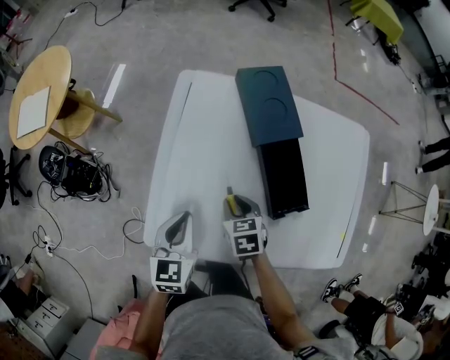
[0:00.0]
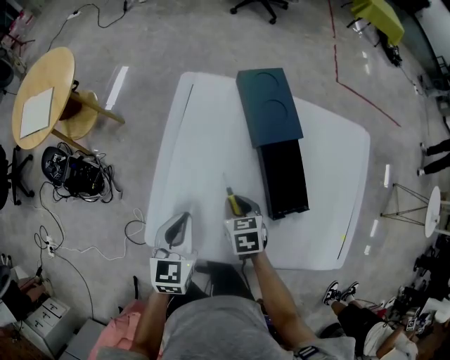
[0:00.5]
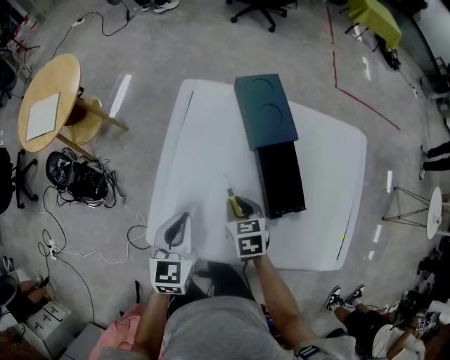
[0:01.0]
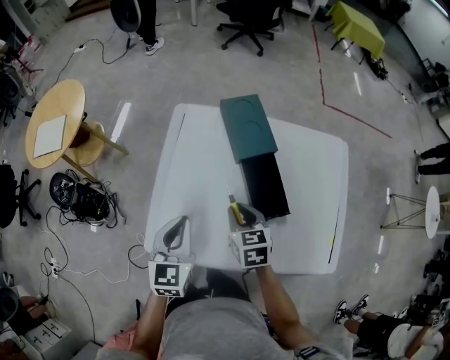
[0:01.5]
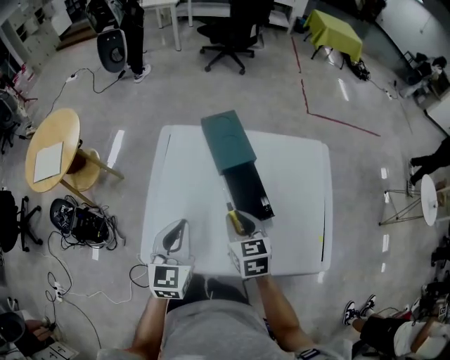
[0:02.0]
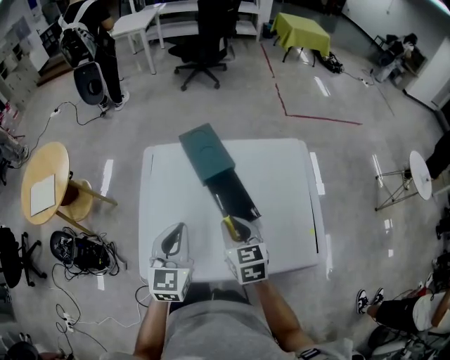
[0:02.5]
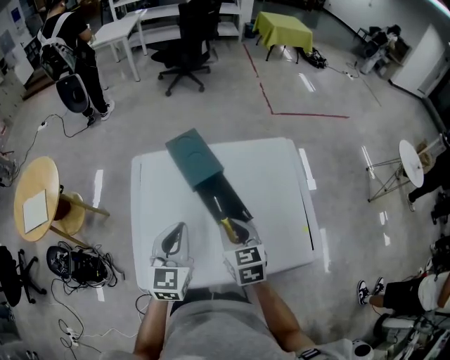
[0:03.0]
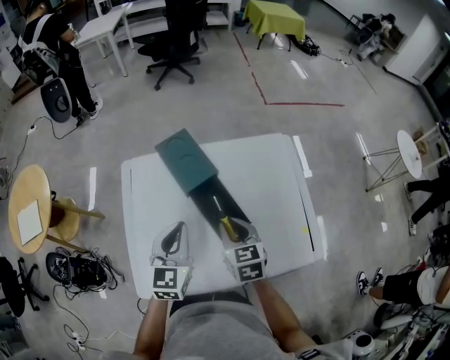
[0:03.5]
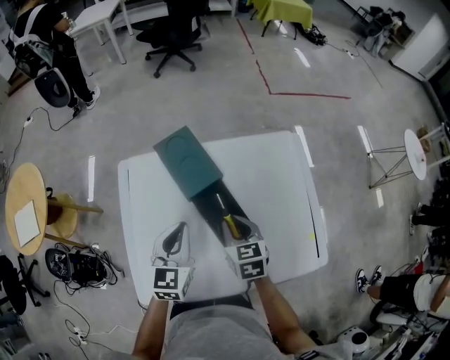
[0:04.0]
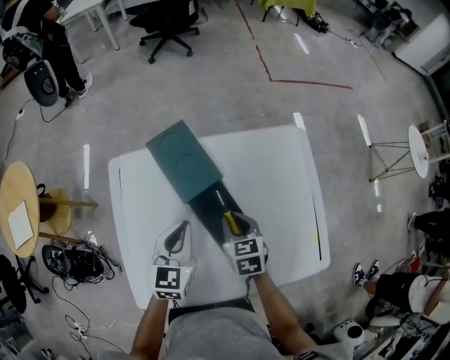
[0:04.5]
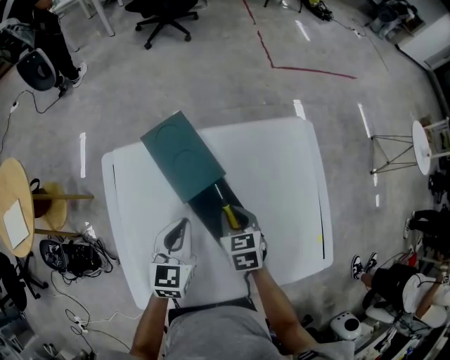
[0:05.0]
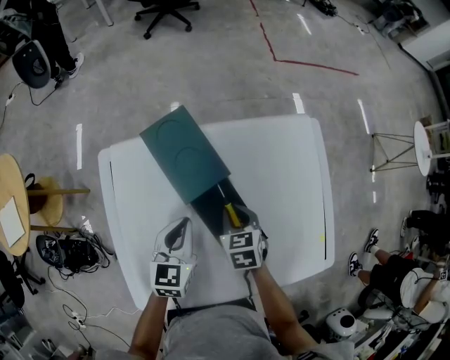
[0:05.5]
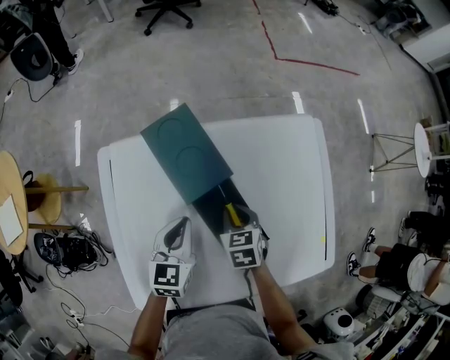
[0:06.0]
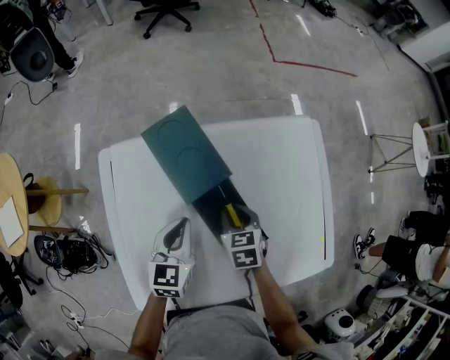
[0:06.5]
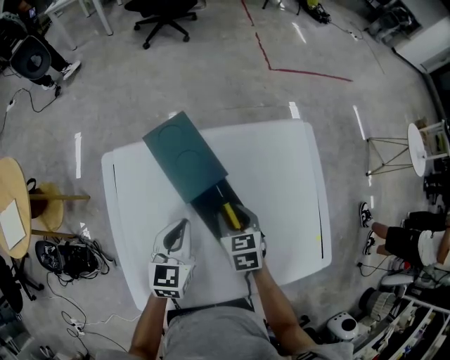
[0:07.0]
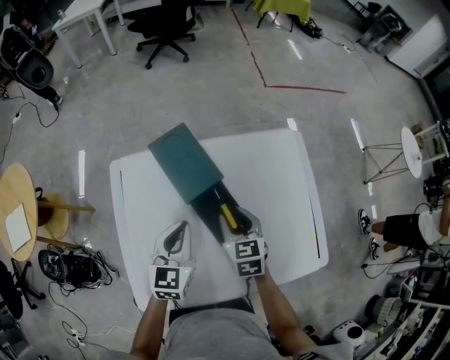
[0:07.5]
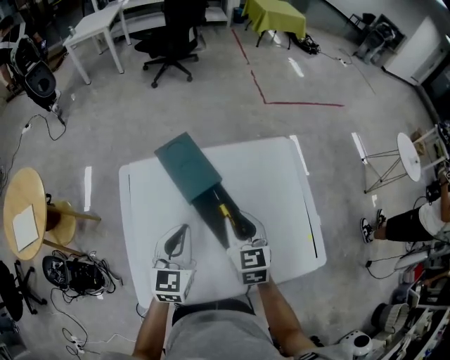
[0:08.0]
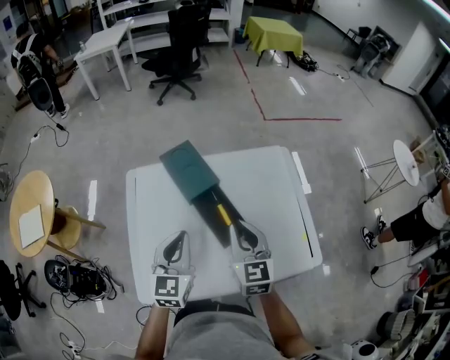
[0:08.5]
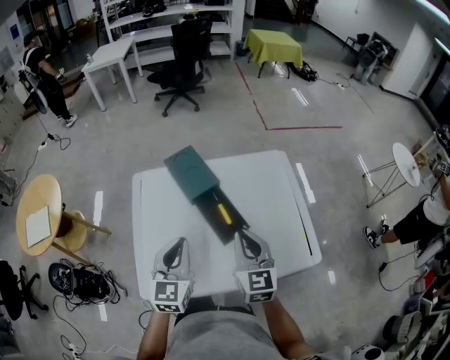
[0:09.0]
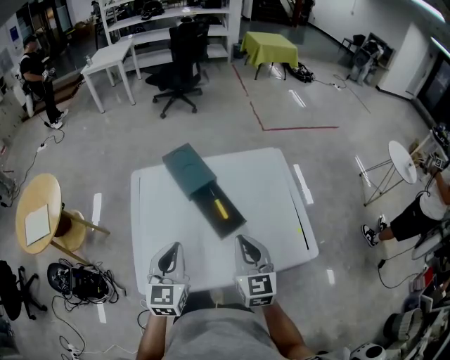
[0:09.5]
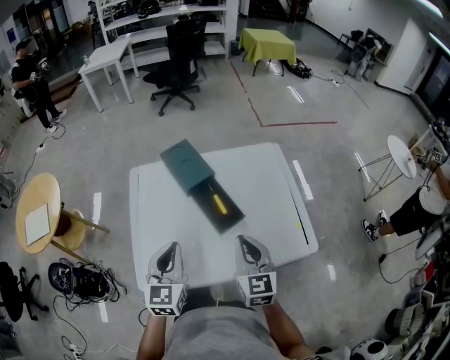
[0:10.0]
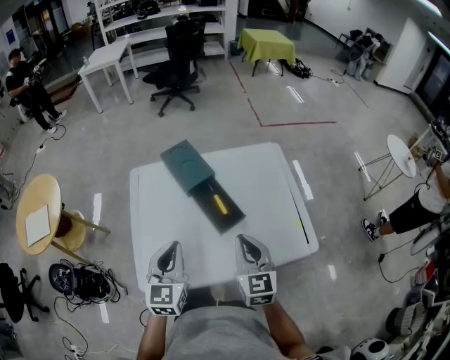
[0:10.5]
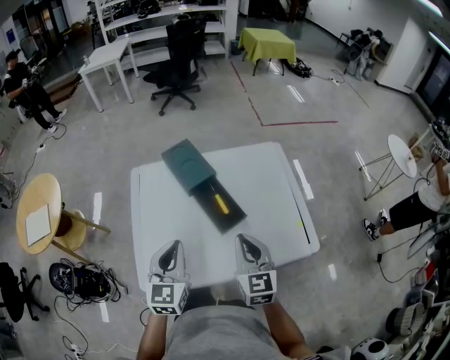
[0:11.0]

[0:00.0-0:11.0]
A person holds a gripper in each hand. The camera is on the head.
0:00.0 to 0:02.0: The two grippers go approximately 15 cm upward and to the right. The right gripper changes its angle by some 20 degrees.
0:02.0 to 0:03.5: The right gripper shifts some 5 cm to the right. The left gripper heads to the right and forward, covering some 10 cm.
0:03.5 to 0:05.5: Both grippers travel together downward and forward, about 20 cm.
0:05.5 to 0:07.5: Both grippers travel together upward, about 10 cm.
0:07.5 to 0:09.0: The grippers both shift backward and upward by roughly 20 cm. The right gripper turns by approximately 30 degrees, and closes its fingers.
0:09.0 to 0:11.0: The right gripper goes approximately 5 cm backward. The left gripper moves some 5 cm.

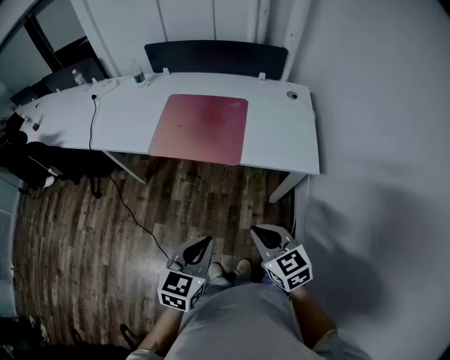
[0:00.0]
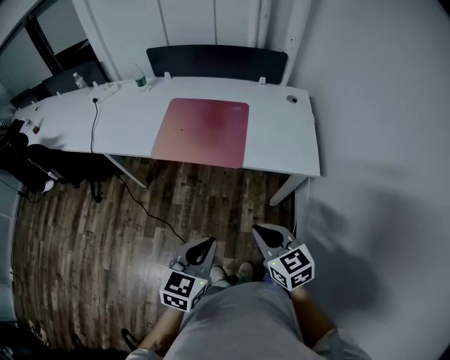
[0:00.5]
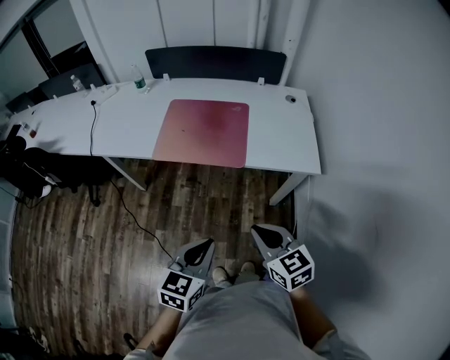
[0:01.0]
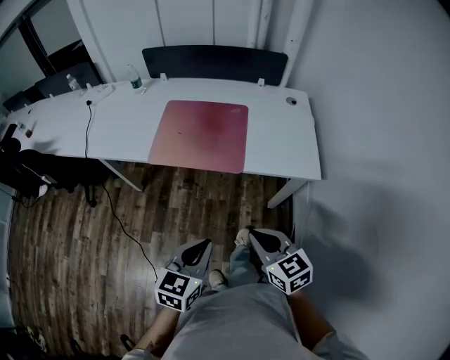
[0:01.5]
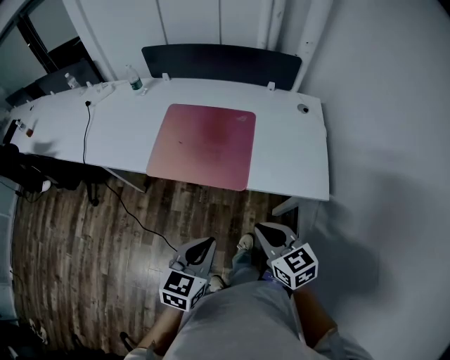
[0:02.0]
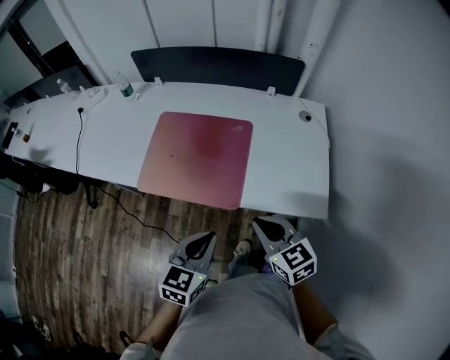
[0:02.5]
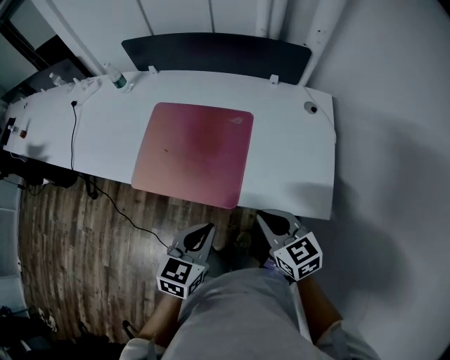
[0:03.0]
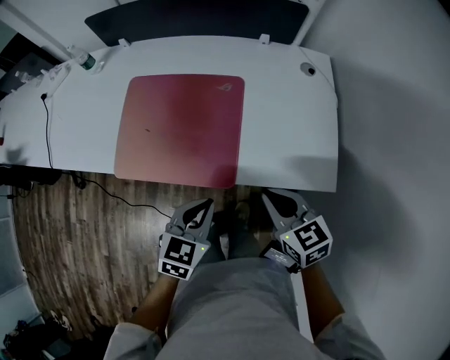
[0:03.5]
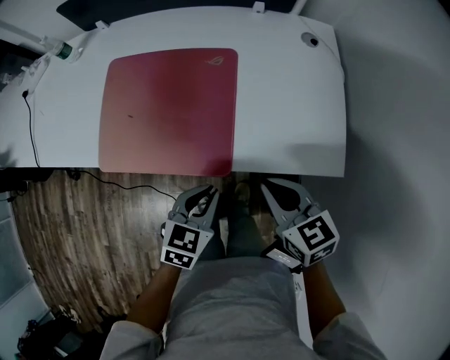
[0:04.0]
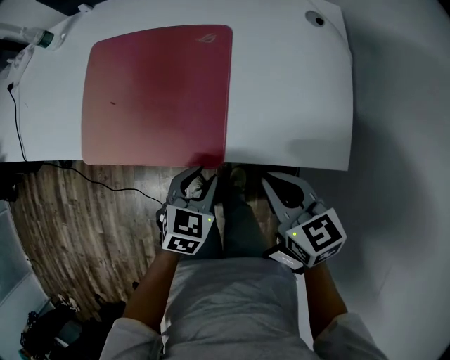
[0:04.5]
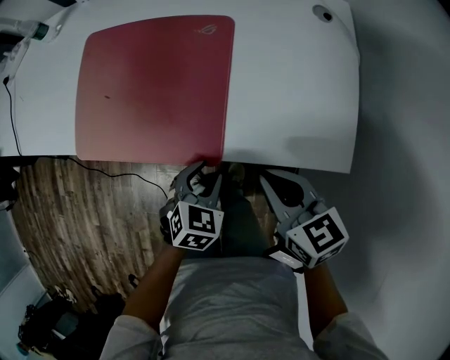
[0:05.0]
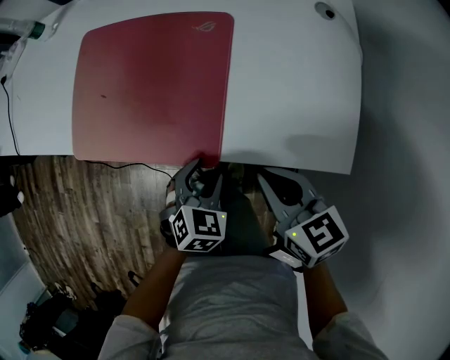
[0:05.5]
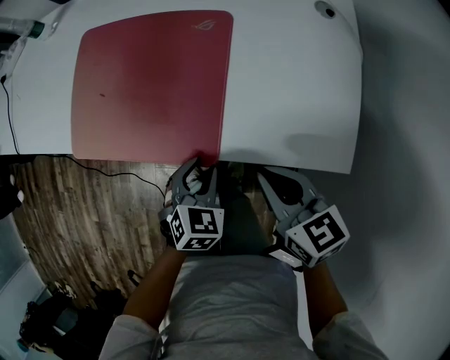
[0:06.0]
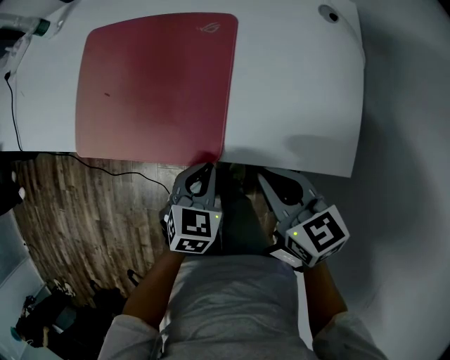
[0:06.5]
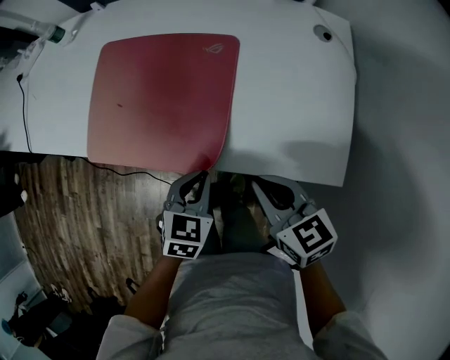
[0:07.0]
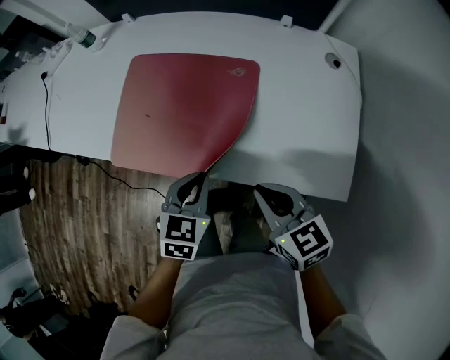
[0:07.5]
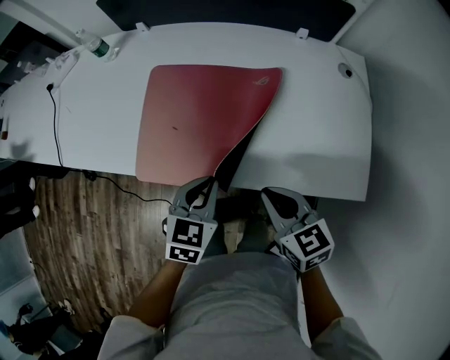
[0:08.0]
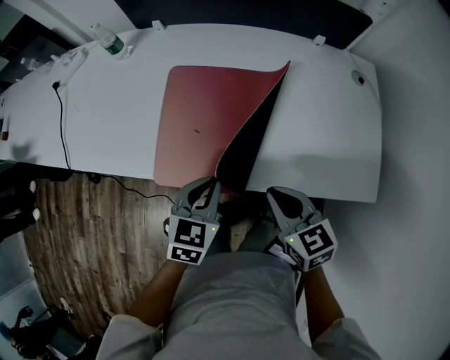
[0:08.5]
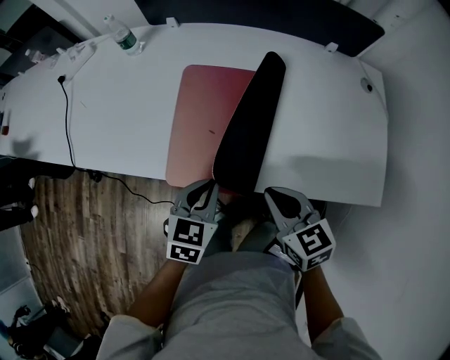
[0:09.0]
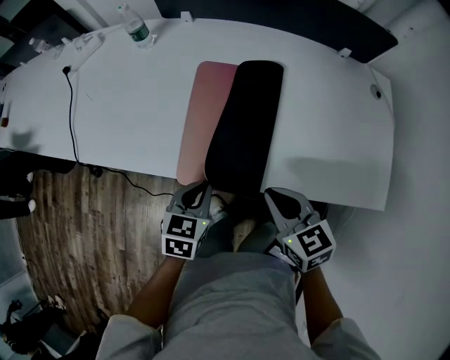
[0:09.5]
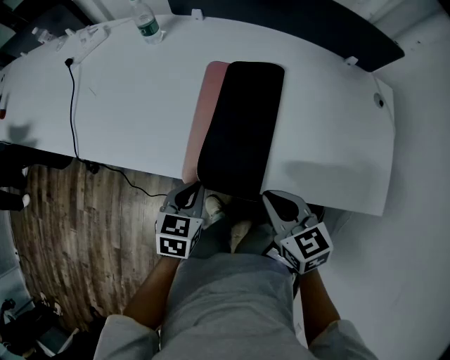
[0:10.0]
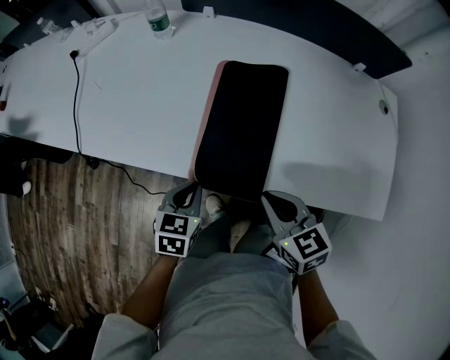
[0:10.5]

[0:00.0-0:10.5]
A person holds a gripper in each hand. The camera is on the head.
0:00.0 to 0:02.0: The two grippers go about 10 cm forward.
0:02.0 to 0:04.0: Both grippers move forward, downward and to the right, some 20 cm.
0:04.0 to 0:06.5: The left gripper travels downward by about 5 cm, and opens, then closes again.
0:06.5 to 0:08.5: The left gripper travels to the left, upward and forward by some 25 cm, while the right gripper travels to the left by roughly 15 cm.
0:08.5 to 0:10.5: The left gripper heads to the left and downward, covering approximately 20 cm; the right gripper moves to the left, some 15 cm.

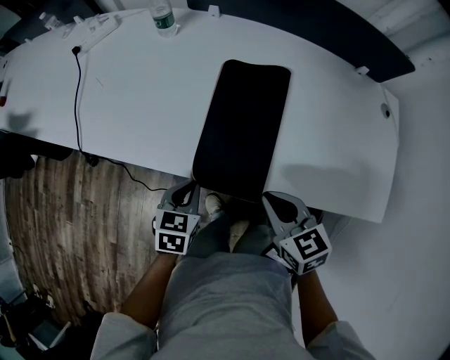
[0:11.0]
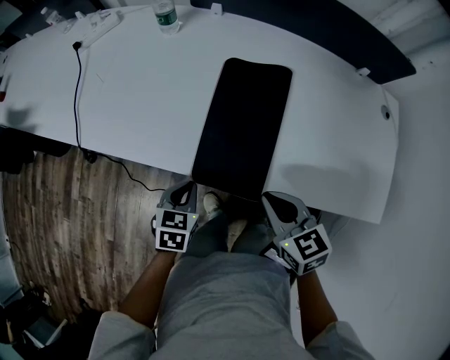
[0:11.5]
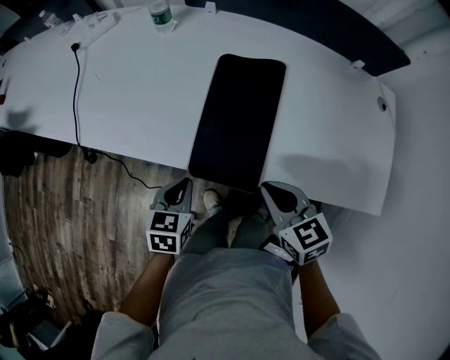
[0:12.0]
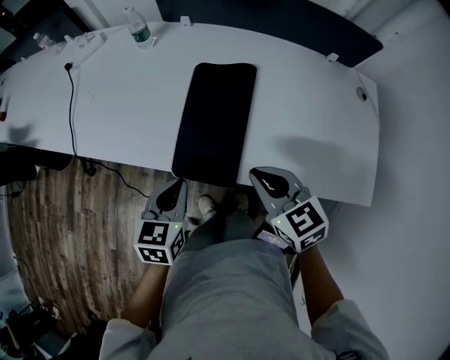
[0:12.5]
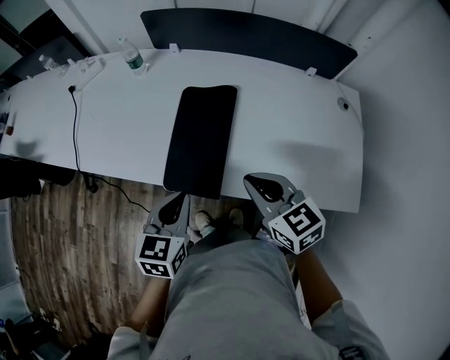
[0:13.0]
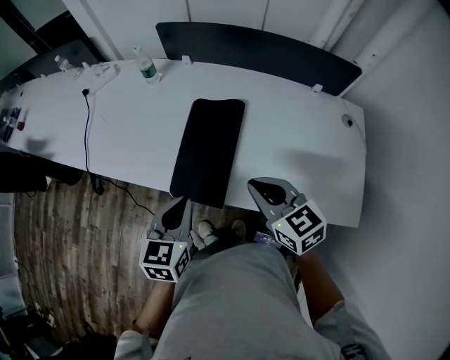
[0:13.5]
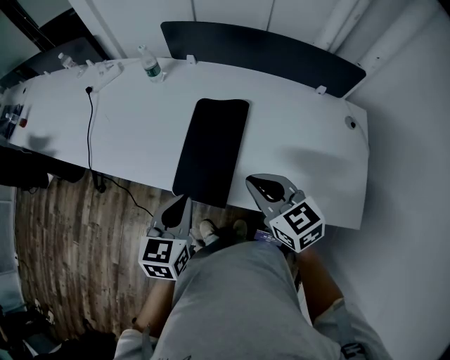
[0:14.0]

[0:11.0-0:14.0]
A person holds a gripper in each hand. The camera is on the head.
0:11.0 to 0:12.5: The left gripper shifts approximately 10 cm upward. Meanwhile the right gripper heads upward, covering approximately 5 cm.
0:12.5 to 0:14.0: The grippers both shift upward by some 10 cm.

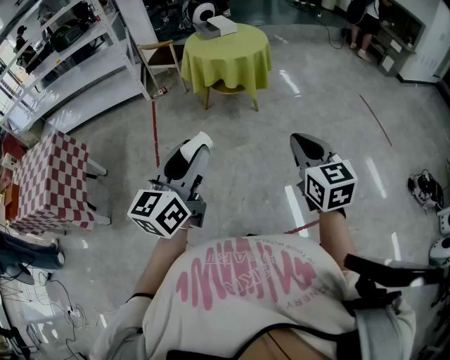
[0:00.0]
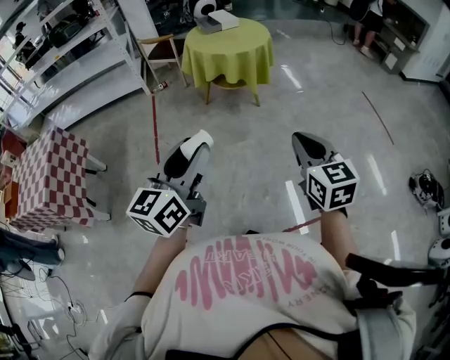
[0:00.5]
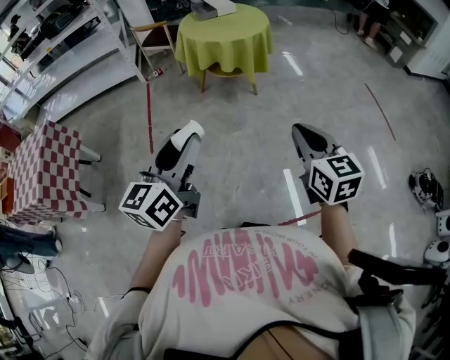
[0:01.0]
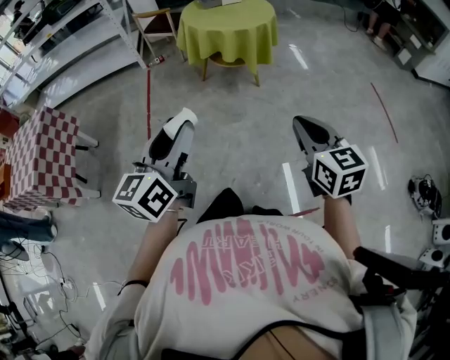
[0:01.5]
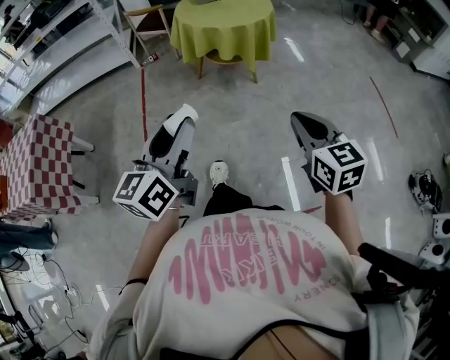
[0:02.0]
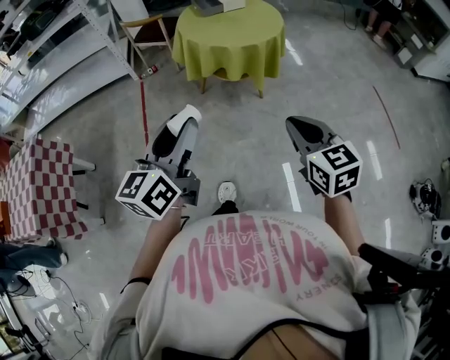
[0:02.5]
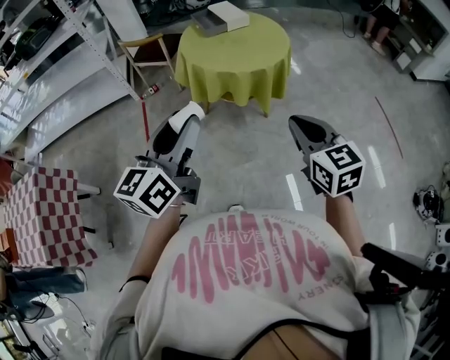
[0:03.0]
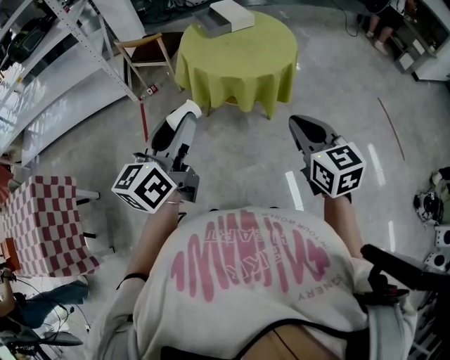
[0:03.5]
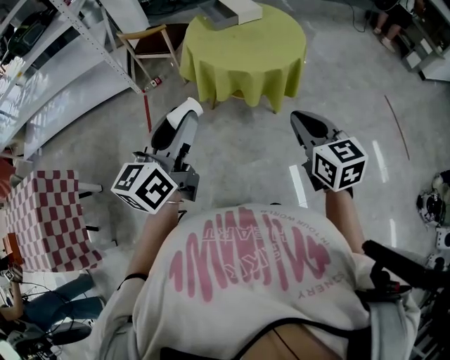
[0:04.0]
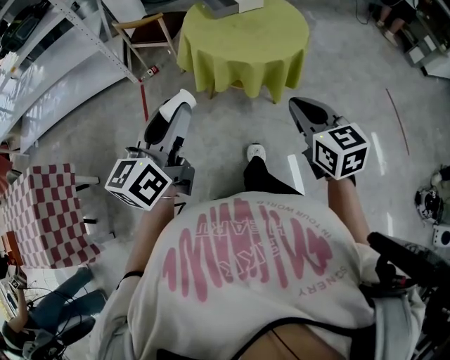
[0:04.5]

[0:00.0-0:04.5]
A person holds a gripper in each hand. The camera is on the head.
0:00.0 to 0:02.0: The left gripper heads forward, covering approximately 15 cm. Meanwhile the right gripper travels forward and downward by some 15 cm.
0:02.0 to 0:04.5: The pair of grippers is taken forward, some 40 cm.
